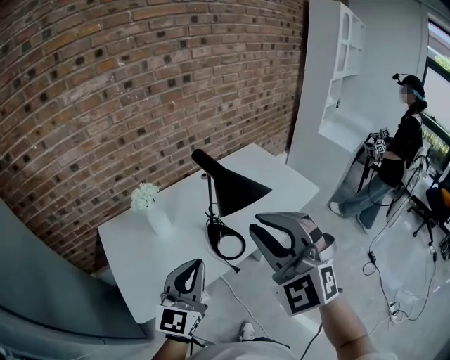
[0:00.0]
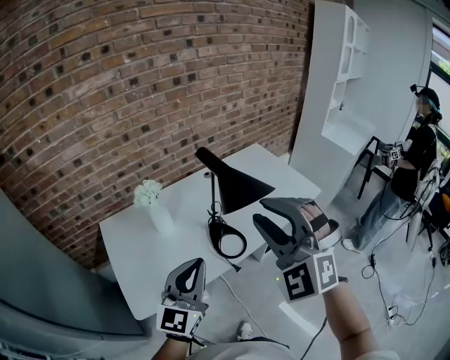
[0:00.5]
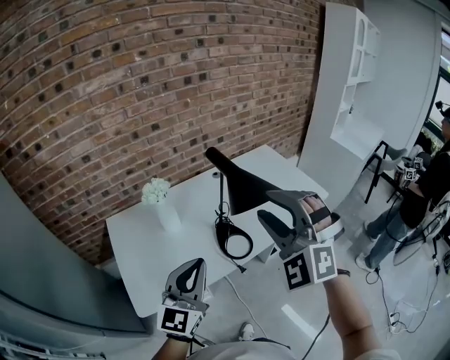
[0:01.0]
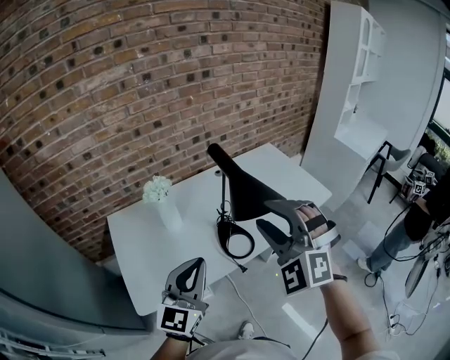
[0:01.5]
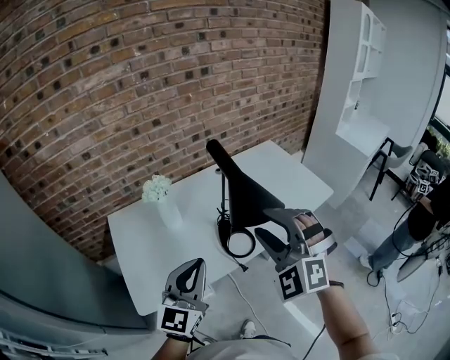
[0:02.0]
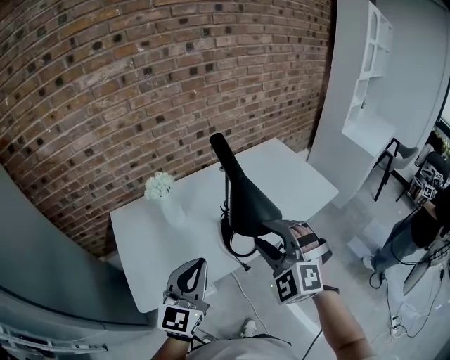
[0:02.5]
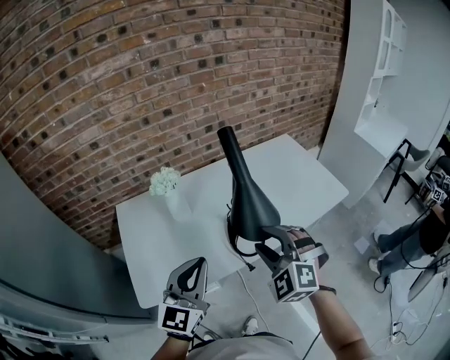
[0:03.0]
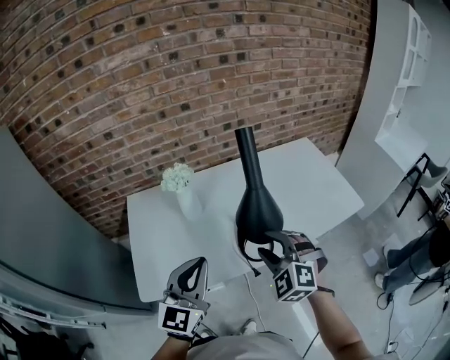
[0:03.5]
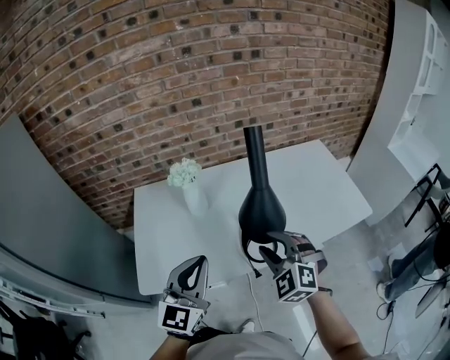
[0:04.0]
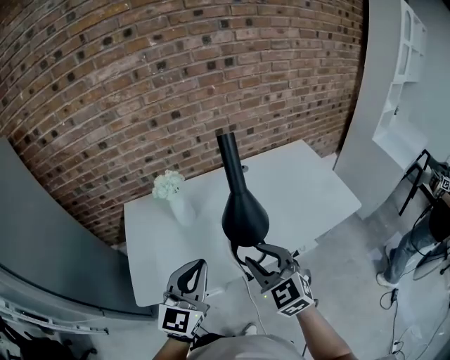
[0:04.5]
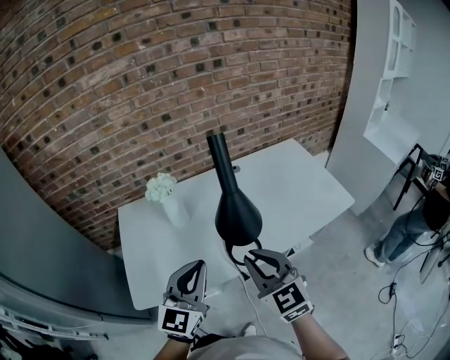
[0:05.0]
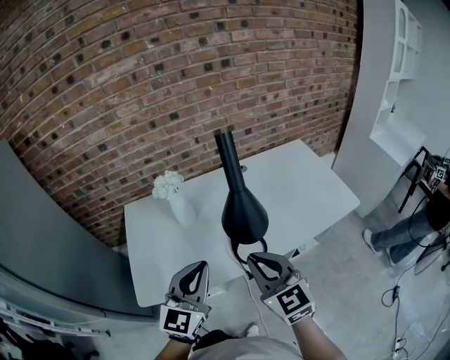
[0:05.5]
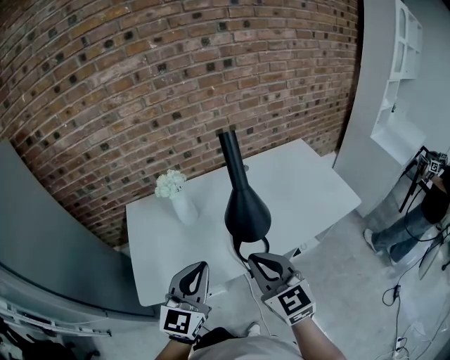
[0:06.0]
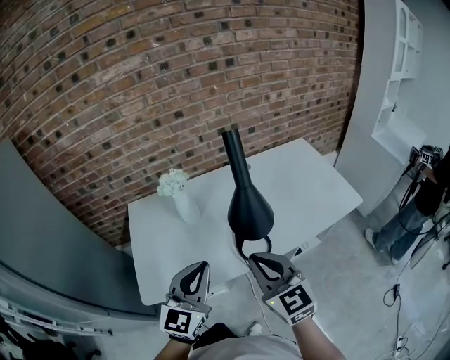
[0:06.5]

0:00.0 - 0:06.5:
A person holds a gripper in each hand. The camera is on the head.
0:00.0 - 0:02.0: The right gripper goes about 5 cm downward, and opens its fingers.
0:02.0 - 0:04.5: The left gripper moves roughly 5 cm. Meanwhile the right gripper moves downward, roughly 15 cm, and turns by approximately 40 degrees.
0:04.5 - 0:06.5: The right gripper moves approximately 5 cm, and closes its fingers.

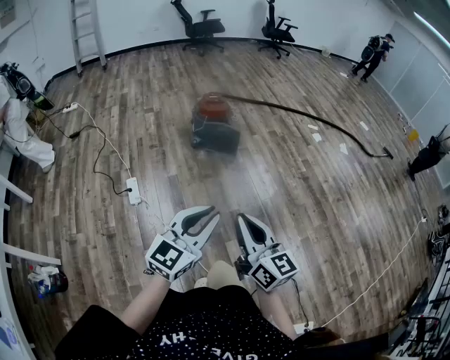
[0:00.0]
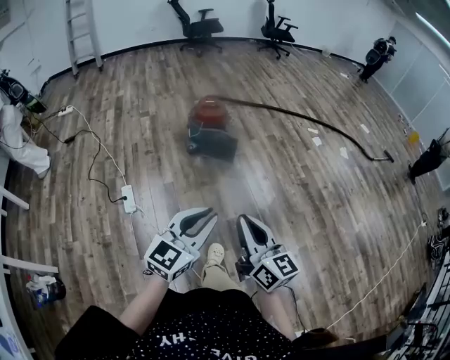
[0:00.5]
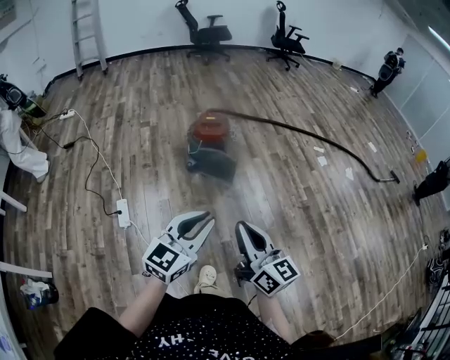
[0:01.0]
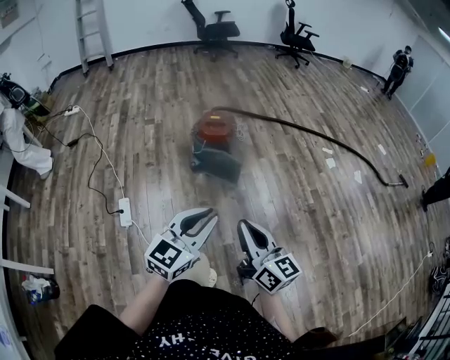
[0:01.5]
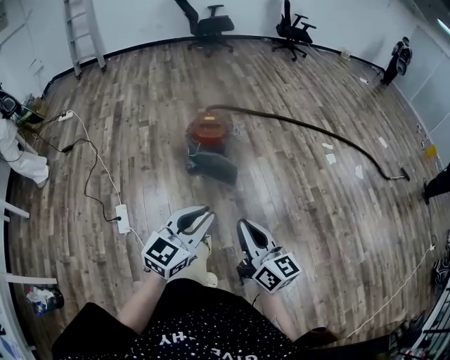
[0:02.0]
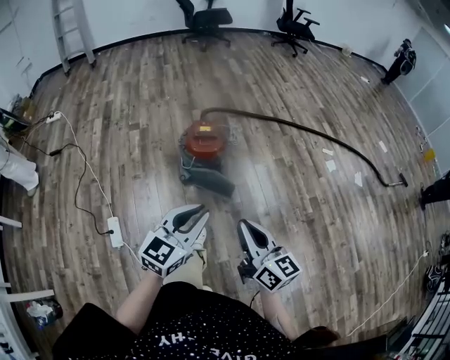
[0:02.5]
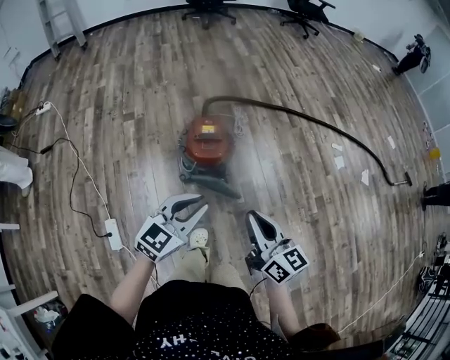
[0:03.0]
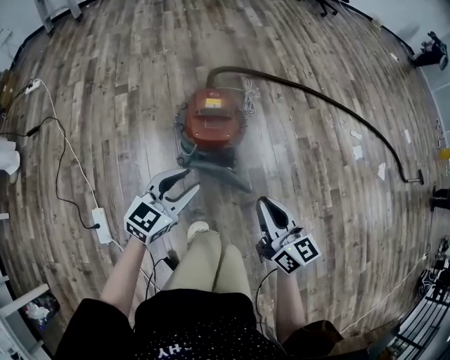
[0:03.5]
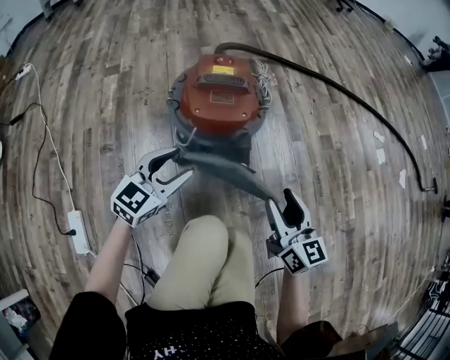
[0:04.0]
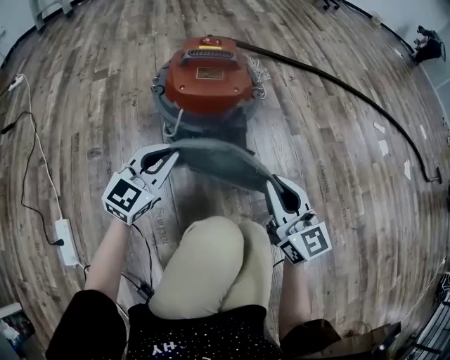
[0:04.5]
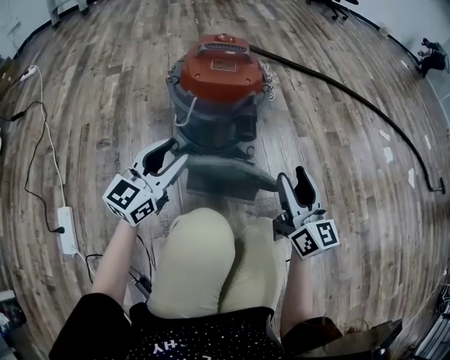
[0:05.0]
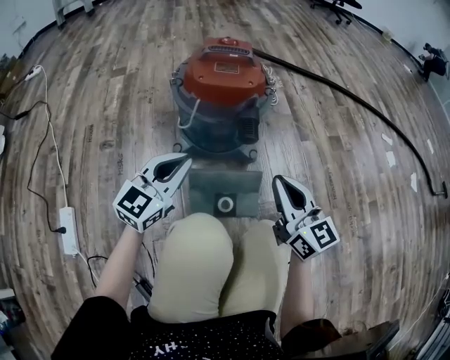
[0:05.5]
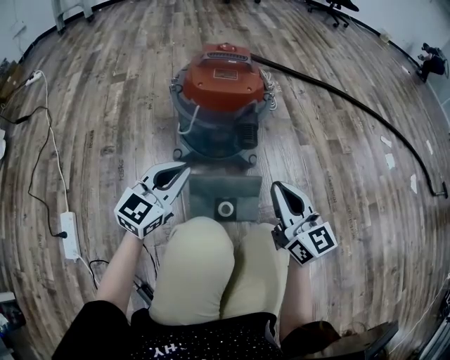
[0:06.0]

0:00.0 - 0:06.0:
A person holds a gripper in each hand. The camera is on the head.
0:00.0 - 0:02.0: Both grippers move forward, roughly 35 cm.
0:02.0 - 0:04.0: The pair of grippers is taken forward, approximately 50 cm. Both grippers travel together downward, some 50 cm. The left gripper opens up. The right gripper opens its fingers.
0:04.0 - 0:06.0: The left gripper heads downward and backward, covering some 10 cm, and closes up; the right gripper shifts some 5 cm downward, and closes its fingers.

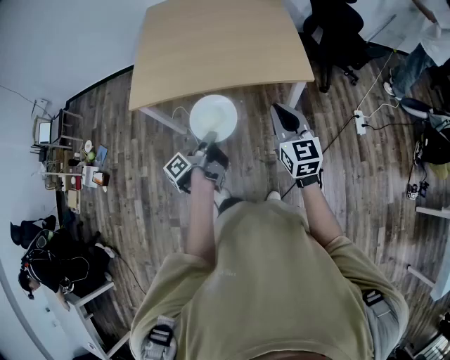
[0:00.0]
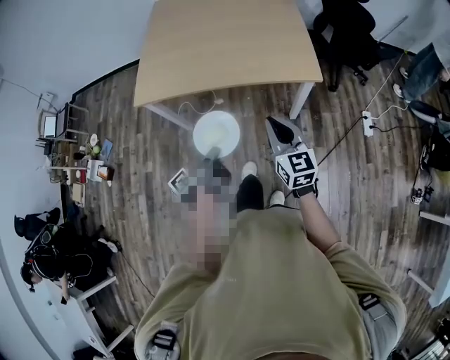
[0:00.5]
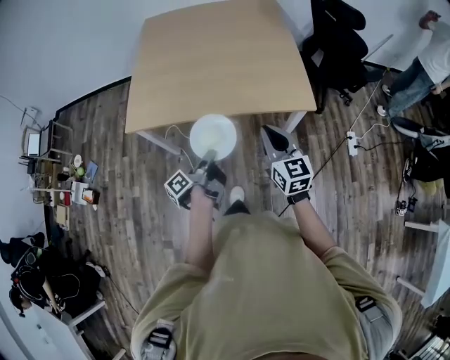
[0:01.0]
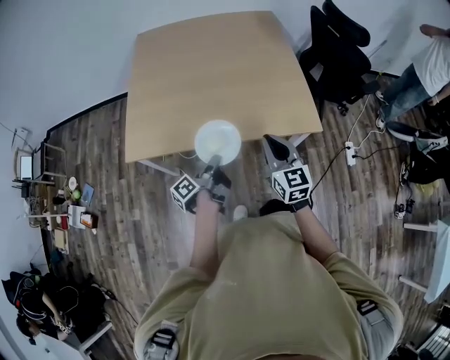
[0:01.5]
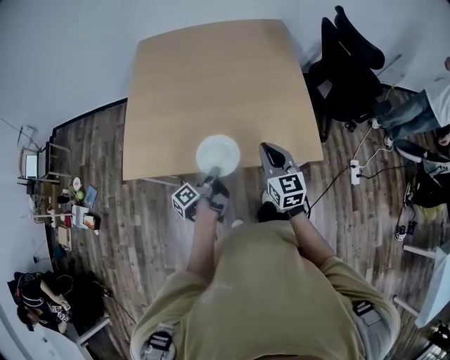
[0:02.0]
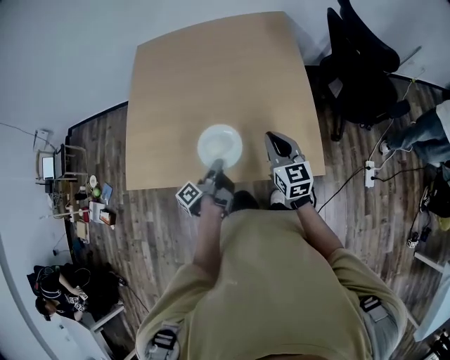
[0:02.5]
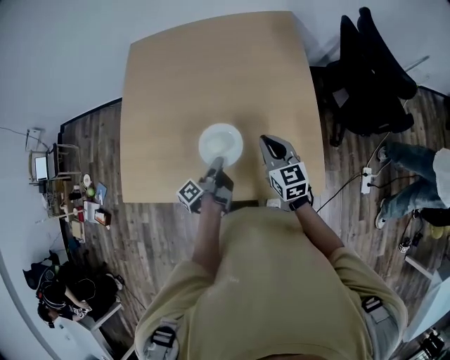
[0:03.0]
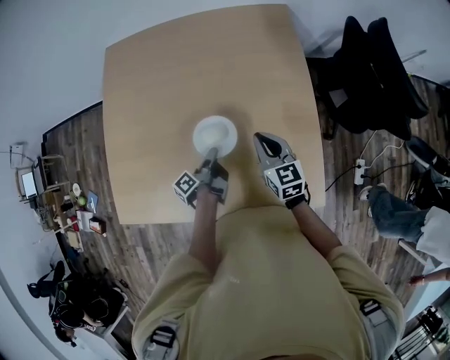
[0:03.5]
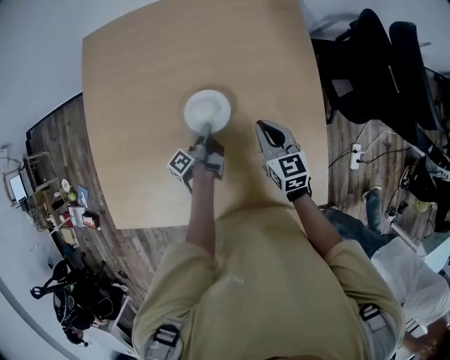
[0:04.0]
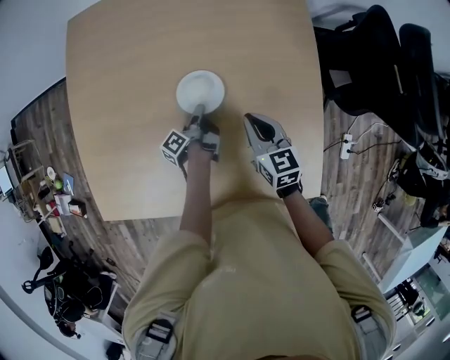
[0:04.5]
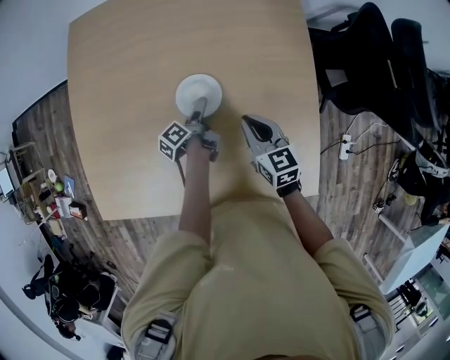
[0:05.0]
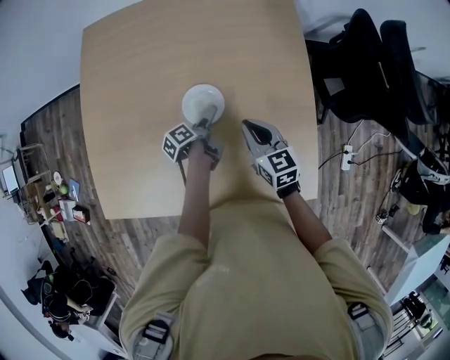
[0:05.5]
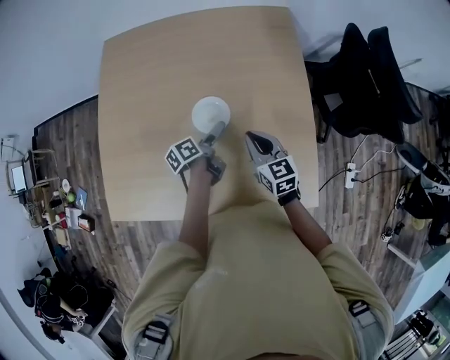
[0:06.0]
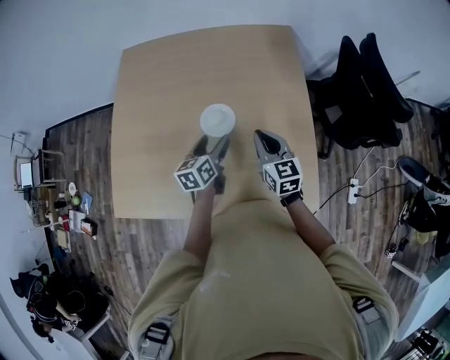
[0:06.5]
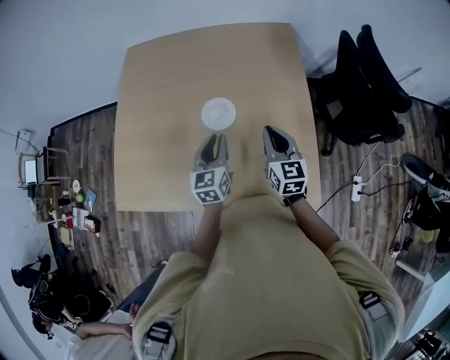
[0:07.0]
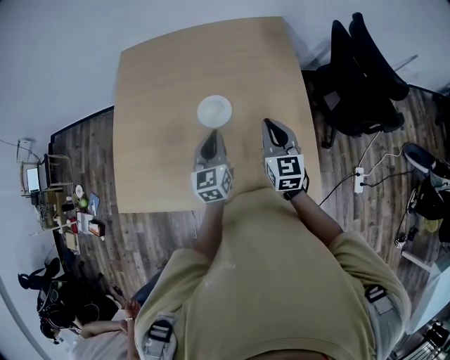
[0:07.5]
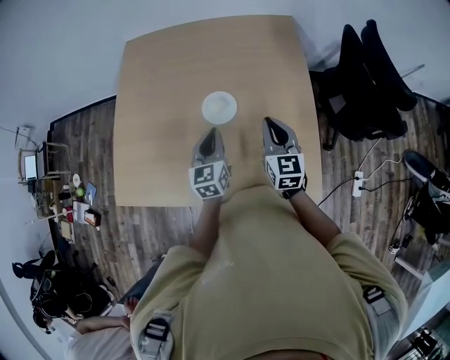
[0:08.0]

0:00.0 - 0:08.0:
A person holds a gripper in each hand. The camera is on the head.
0:00.0 - 0:02.0: The right gripper shifts by roughly 30 cm.
0:02.0 - 0:04.0: The right gripper ends up roughly 40 cm from where it was.
0:04.0 - 0:06.0: The right gripper moves roughly 10 cm.
0:06.0 - 0:08.0: The right gripper travels upward by approximately 5 cm.

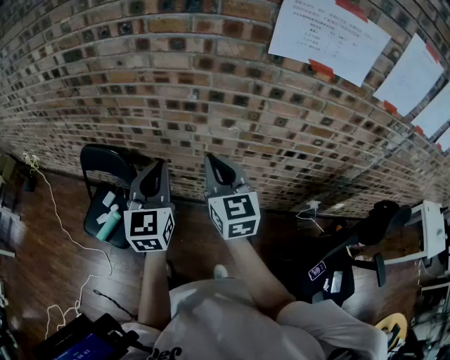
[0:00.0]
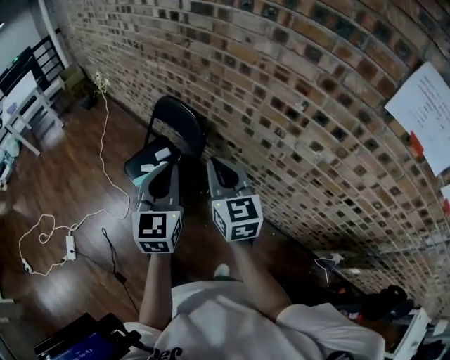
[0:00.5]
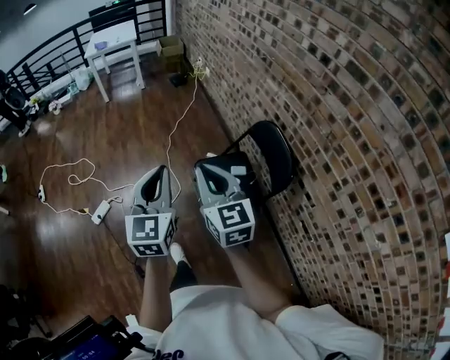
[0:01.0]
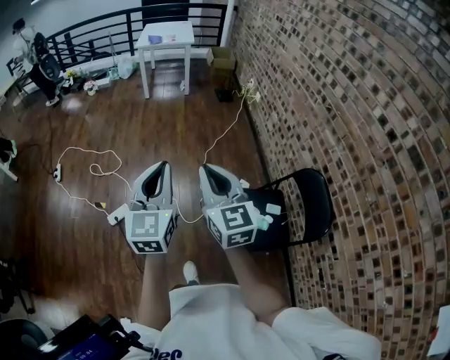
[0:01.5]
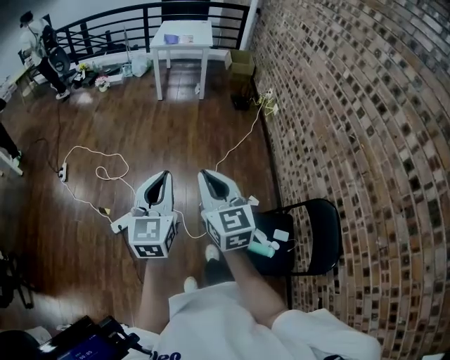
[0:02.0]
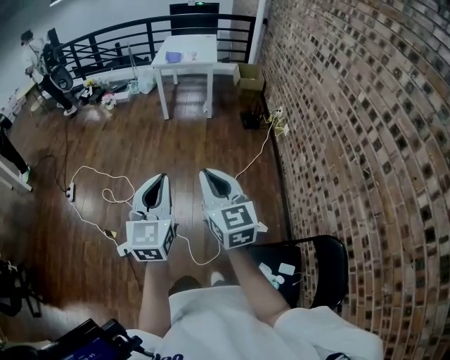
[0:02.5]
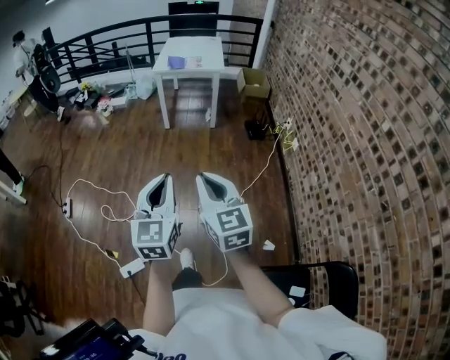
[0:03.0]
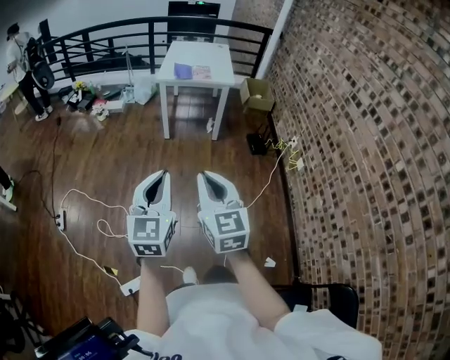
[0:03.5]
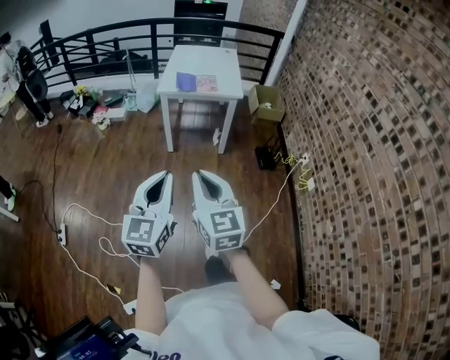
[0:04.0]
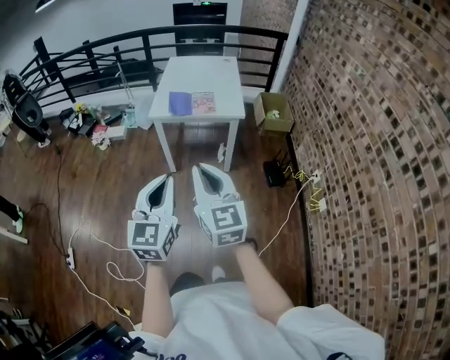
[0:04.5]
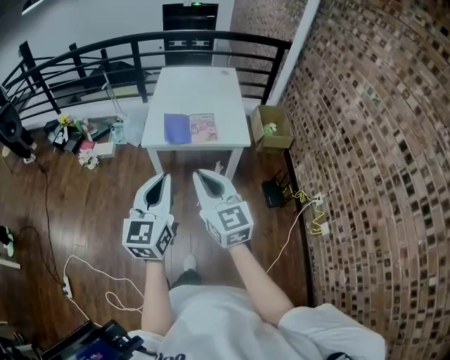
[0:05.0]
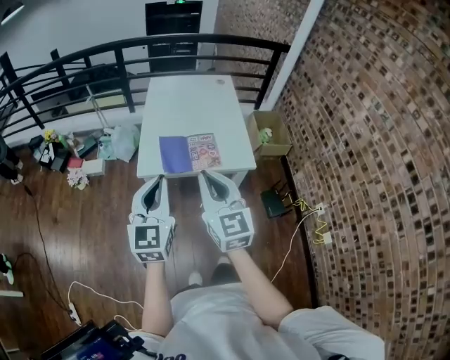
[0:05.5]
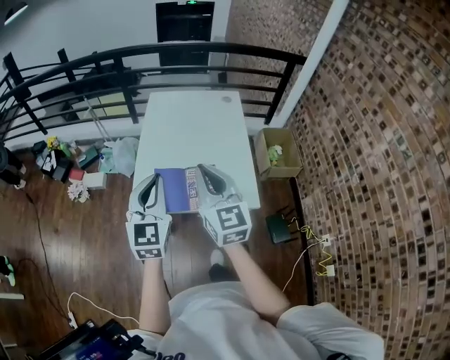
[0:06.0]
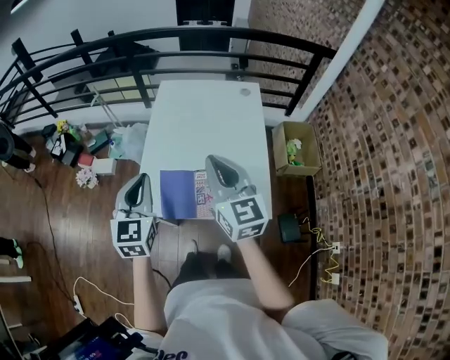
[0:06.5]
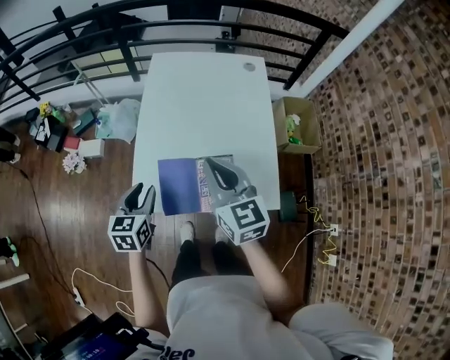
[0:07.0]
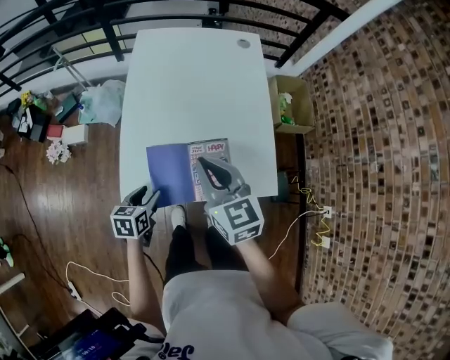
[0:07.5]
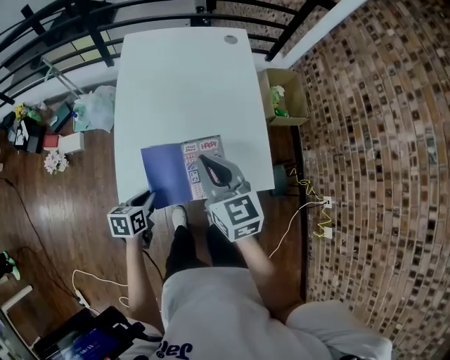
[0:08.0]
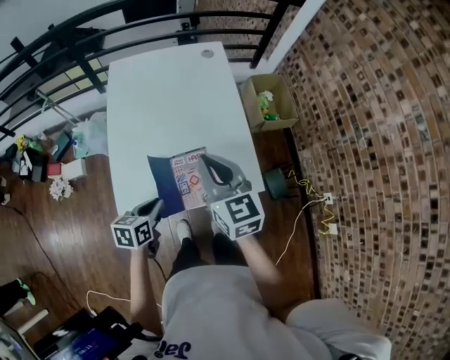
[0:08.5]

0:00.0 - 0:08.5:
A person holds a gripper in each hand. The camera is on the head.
0:00.0 - 0:02.0: Both grippers are carried approximately 90 cm. The left gripper changes its angle by some 70 degrees. The right gripper swivels roughly 80 degrees.
0:02.0 - 0:04.0: The two grippers travel together, forward, about 70 cm.
0:04.0 - 0:06.5: Both grippers are carried forward, roughly 90 cm. The left gripper rotates some 20 degrees.
0:06.5 - 0:08.5: The right gripper shifts approximately 10 cm downward; the left gripper shifts about 25 cm downward, rotates some 50 degrees, and opens, then closes once more.
